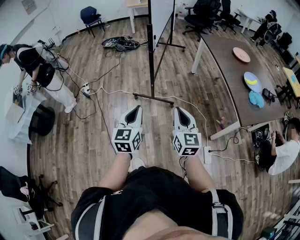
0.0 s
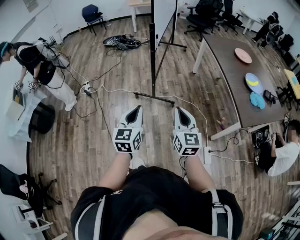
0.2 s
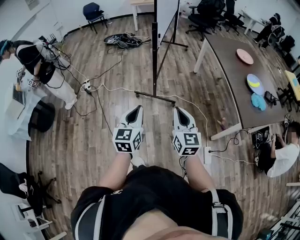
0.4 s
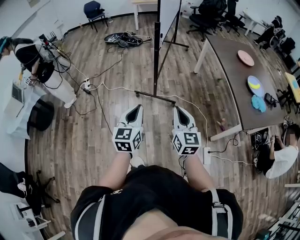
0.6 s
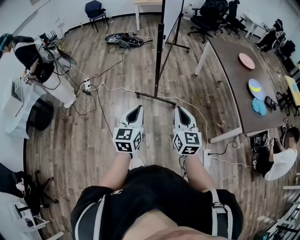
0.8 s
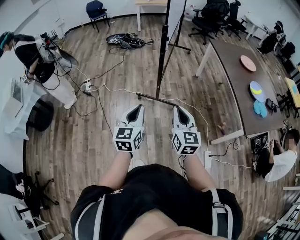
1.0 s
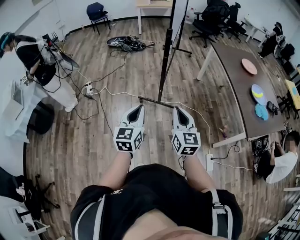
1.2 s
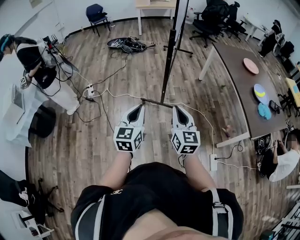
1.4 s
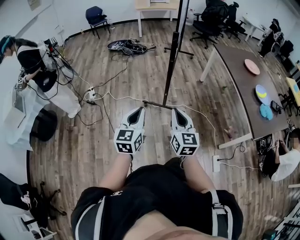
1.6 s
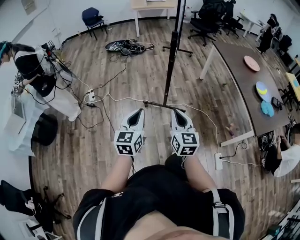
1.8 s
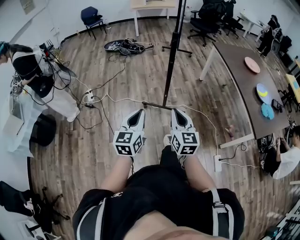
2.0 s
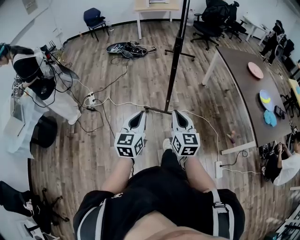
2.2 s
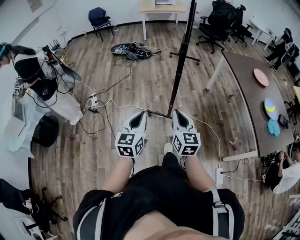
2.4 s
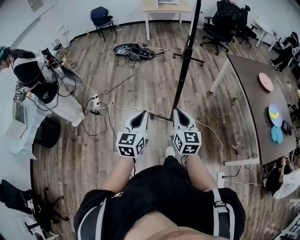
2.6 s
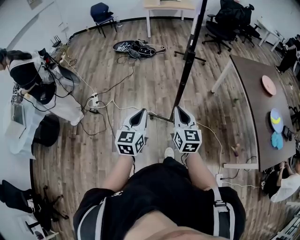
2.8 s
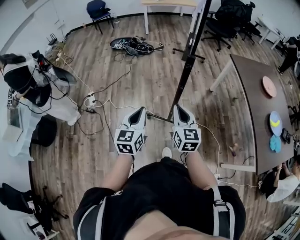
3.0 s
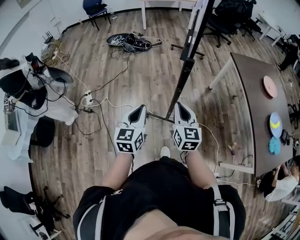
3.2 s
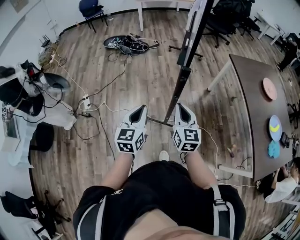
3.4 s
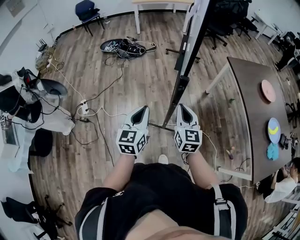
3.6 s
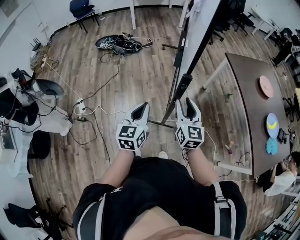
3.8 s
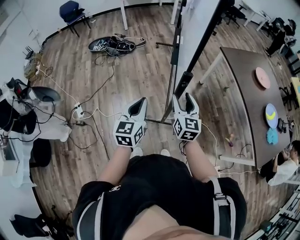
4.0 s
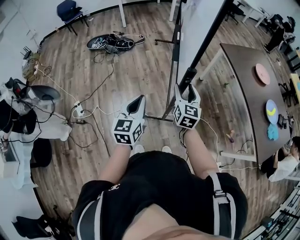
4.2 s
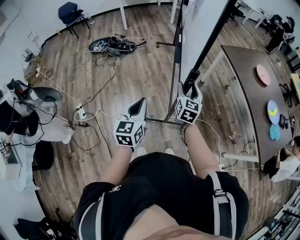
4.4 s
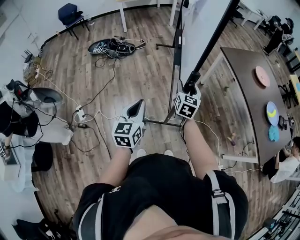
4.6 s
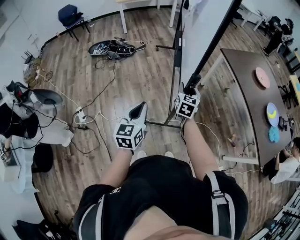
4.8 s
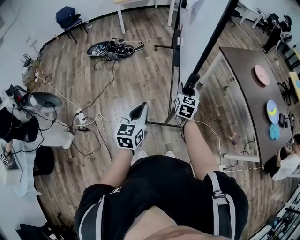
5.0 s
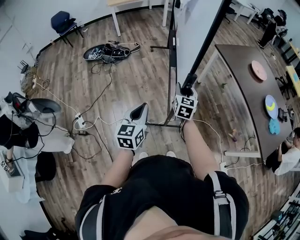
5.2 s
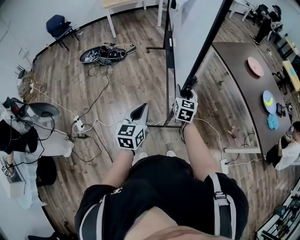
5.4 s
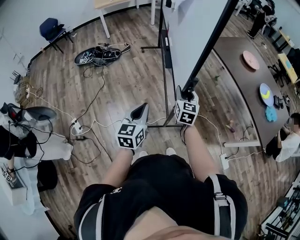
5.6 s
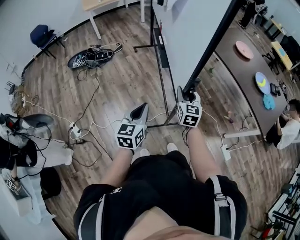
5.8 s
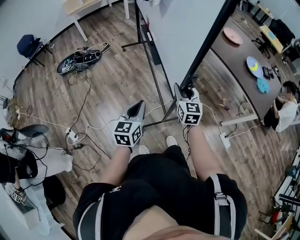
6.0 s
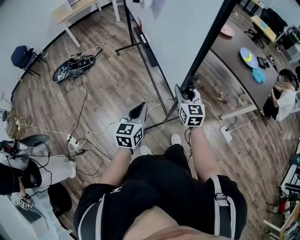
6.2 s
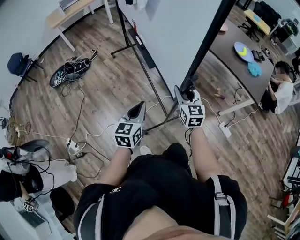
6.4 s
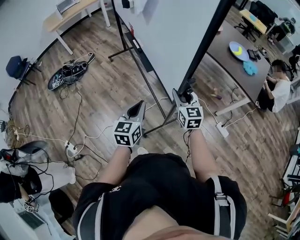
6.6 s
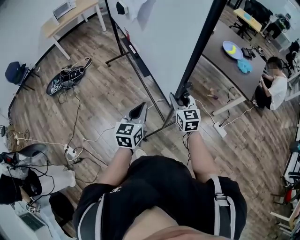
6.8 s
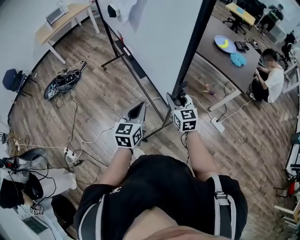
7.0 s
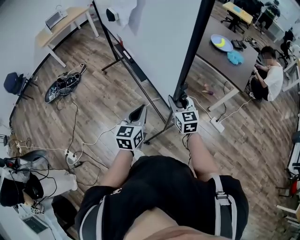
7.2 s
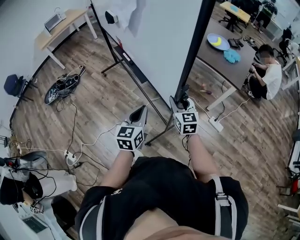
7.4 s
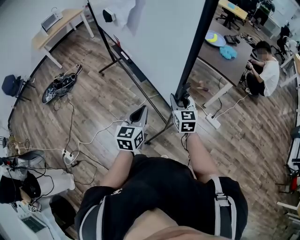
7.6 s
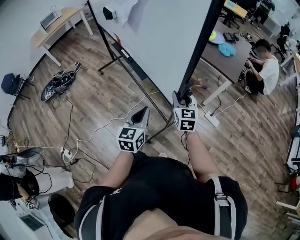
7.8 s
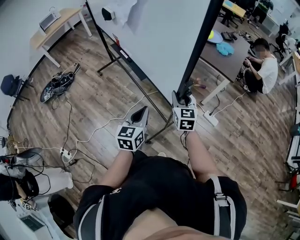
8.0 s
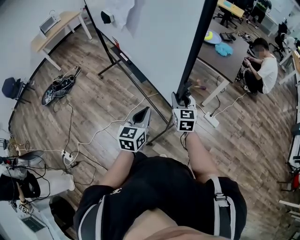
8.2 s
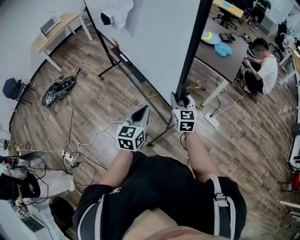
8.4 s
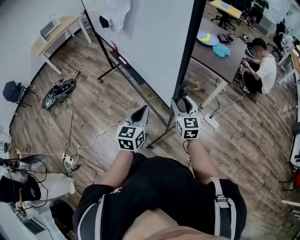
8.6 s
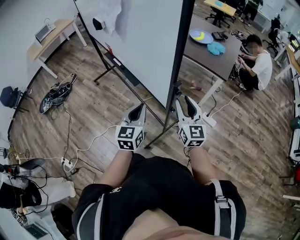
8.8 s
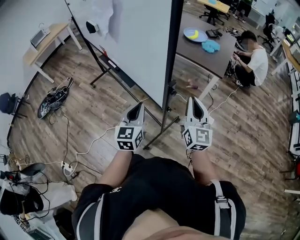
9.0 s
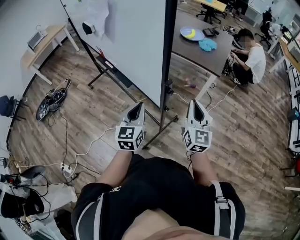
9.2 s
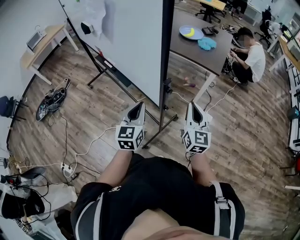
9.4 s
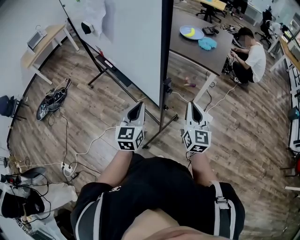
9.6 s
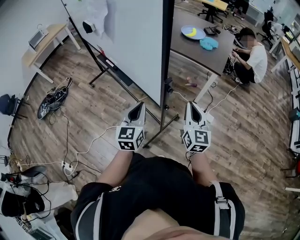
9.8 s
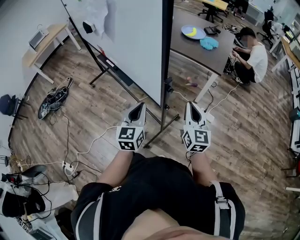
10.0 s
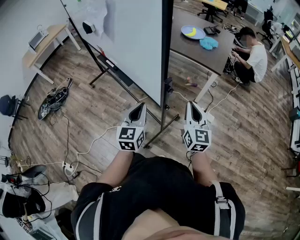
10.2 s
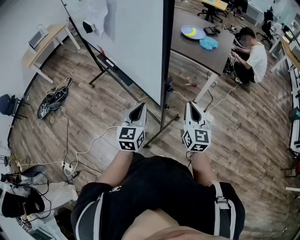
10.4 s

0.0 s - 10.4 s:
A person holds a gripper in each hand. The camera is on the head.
0.0 s - 1.4 s: Both grippers move to the left and forward, some 15 cm.
1.4 s - 3.0 s: The two grippers go some 30 cm forward.
3.0 s - 4.4 s: The two grippers go approximately 20 cm forward. The right gripper rotates about 30 degrees, and opens its fingers.
4.4 s - 6.0 s: The right gripper is displaced to the right and backward by approximately 10 cm. Meanwhile the left gripper heads to the right, covering roughly 5 cm, and changes its angle by roughly 20 degrees.
6.0 s - 7.4 s: The left gripper moves to the right, about 25 cm. The right gripper heads to the right and backward, covering some 25 cm.
7.4 s - 9.0 s: The right gripper goes approximately 20 cm to the right, upward and backward, rotates roughly 30 degrees, and closes its fingers. The left gripper heads to the right, covering approximately 10 cm.
9.0 s - 10.4 s: The grippers make only small movements.

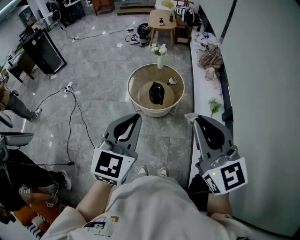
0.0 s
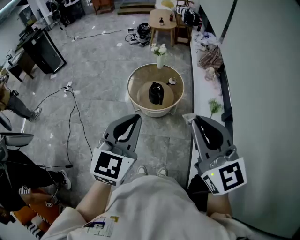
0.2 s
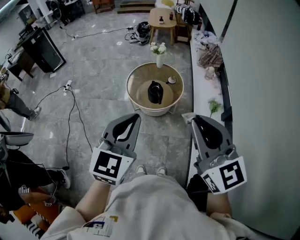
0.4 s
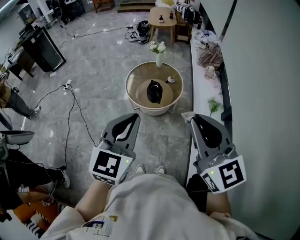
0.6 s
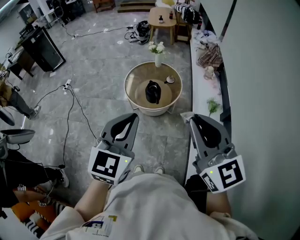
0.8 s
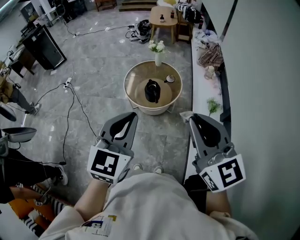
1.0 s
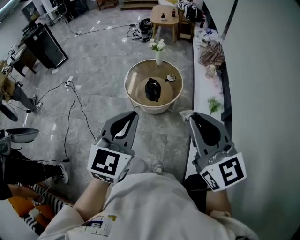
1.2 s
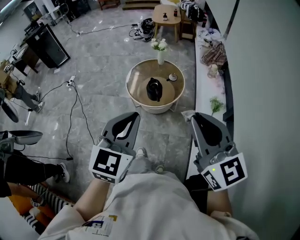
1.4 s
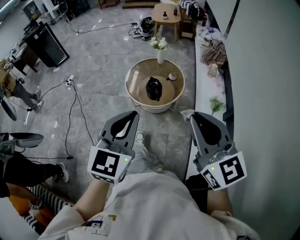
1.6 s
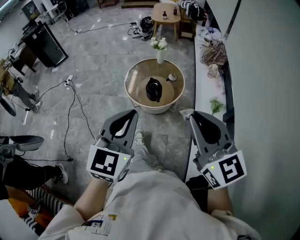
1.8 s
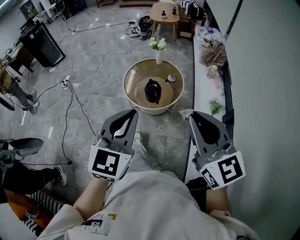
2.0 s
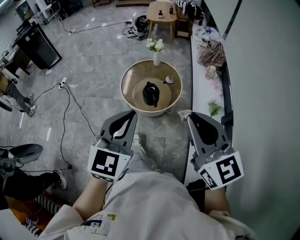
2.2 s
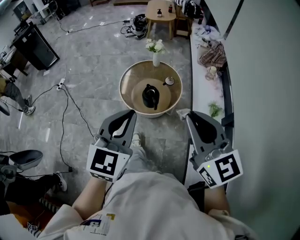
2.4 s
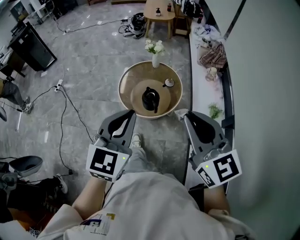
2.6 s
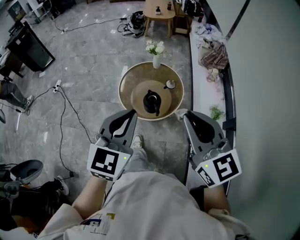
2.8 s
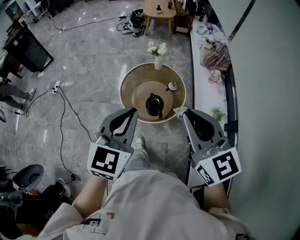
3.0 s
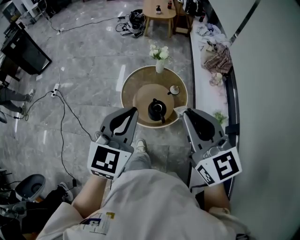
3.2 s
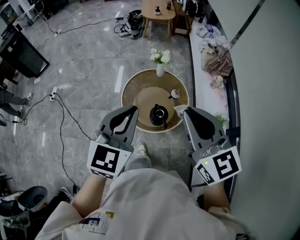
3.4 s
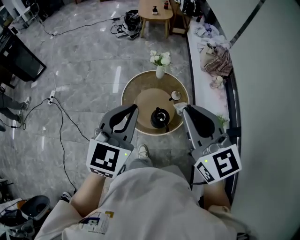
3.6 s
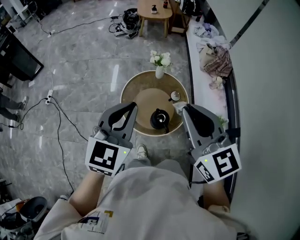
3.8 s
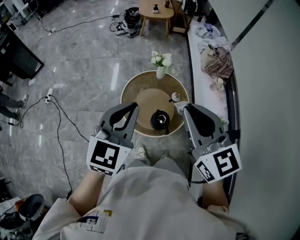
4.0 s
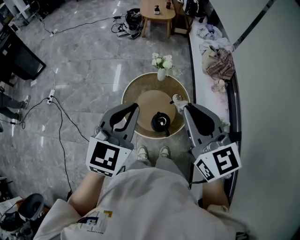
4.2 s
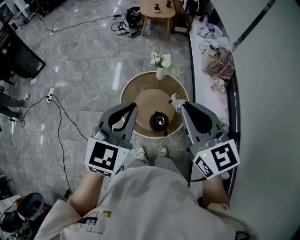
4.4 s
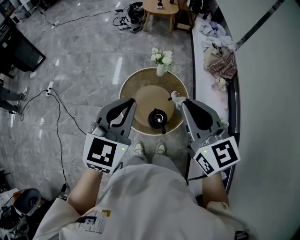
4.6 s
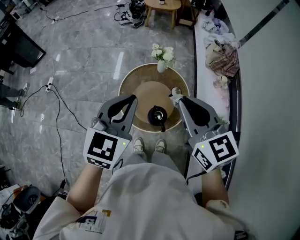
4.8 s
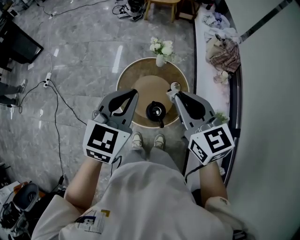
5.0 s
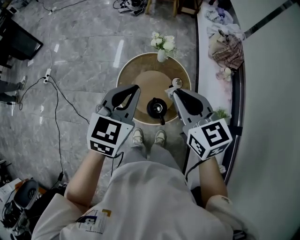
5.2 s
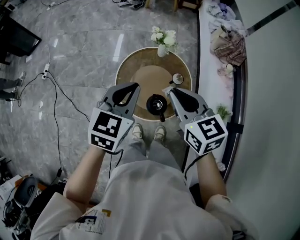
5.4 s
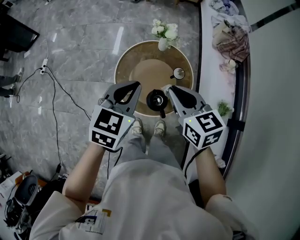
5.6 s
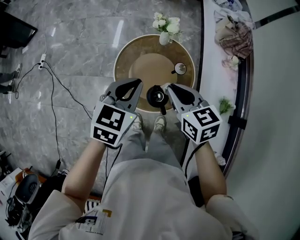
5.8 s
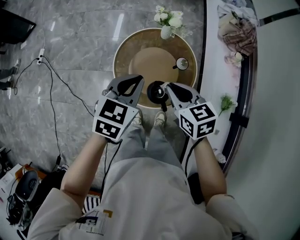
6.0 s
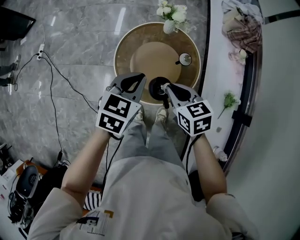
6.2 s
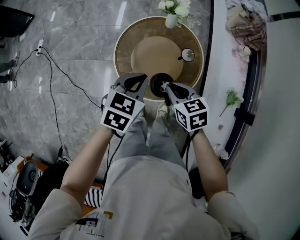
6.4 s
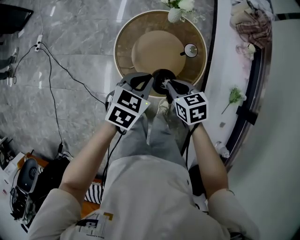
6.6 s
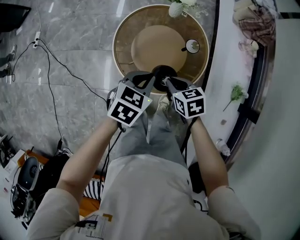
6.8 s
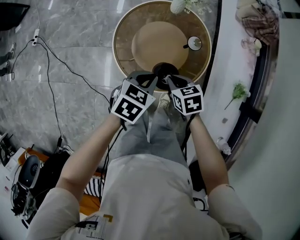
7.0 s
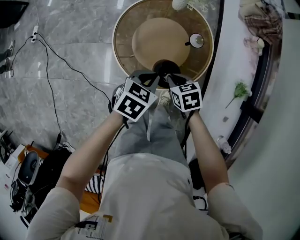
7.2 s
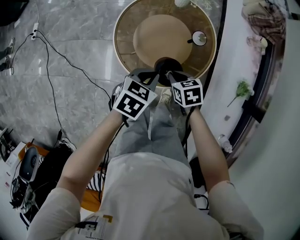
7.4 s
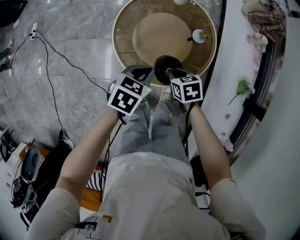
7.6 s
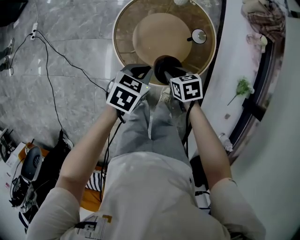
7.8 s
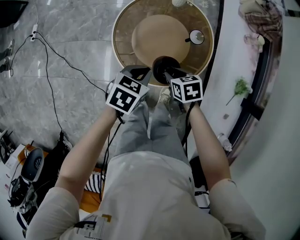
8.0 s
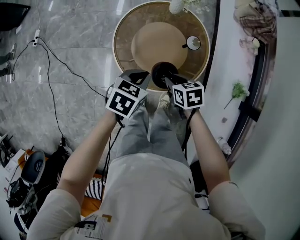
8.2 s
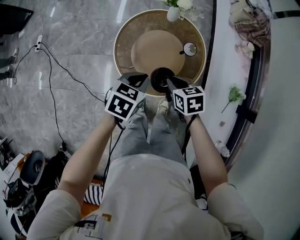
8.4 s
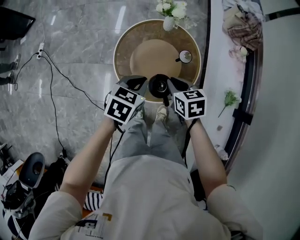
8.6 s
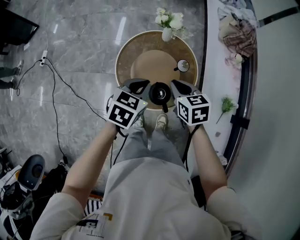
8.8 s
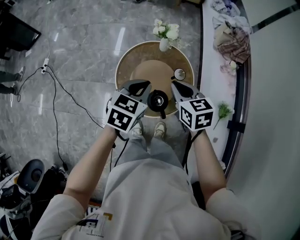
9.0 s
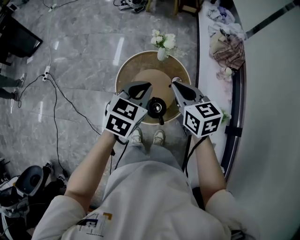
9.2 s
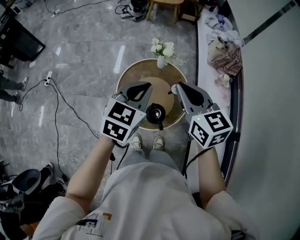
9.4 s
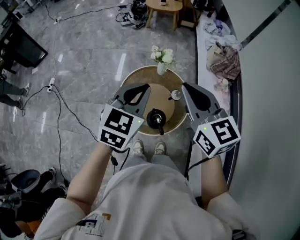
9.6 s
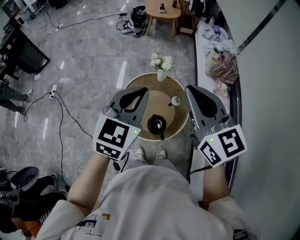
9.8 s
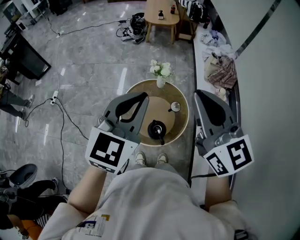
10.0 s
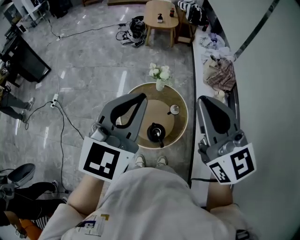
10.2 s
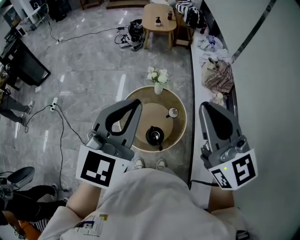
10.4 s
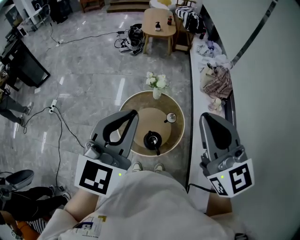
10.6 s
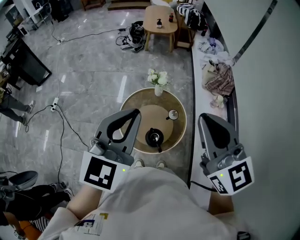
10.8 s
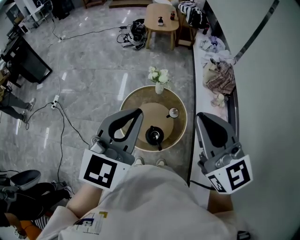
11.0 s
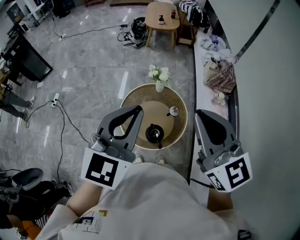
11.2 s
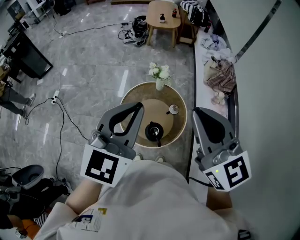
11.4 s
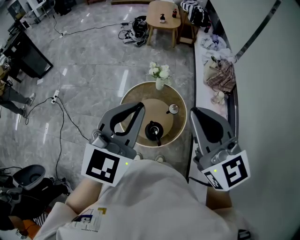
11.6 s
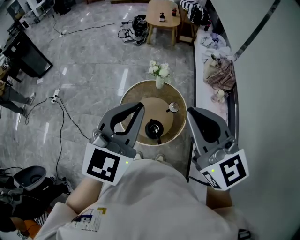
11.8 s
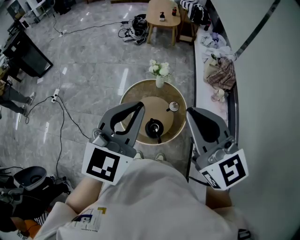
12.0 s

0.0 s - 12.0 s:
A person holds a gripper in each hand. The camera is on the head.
0.0 s - 1.6 s: The two grippers go roughly 5 cm to the right.
1.6 s - 3.0 s: Both grippers travel together forward, about 25 cm.
3.0 s - 4.4 s: The two grippers go about 20 cm forward.
4.4 s - 6.0 s: Both grippers move downward, roughly 25 cm. The right gripper changes its angle by roughly 30 degrees. The left gripper swivels some 20 degrees.
6.0 s - 7.6 s: Both grippers move downward, some 25 cm. The right gripper changes its angle by roughly 30 degrees; the left gripper turns by roughly 30 degrees.
7.6 s - 9.0 s: Both grippers move upward, approximately 25 cm. The left gripper changes its angle by about 20 degrees. Meanwhile the right gripper changes its angle by roughly 30 degrees, and opens, then closes again.
9.0 s - 10.4 s: The grippers both shift upward by roughly 35 cm. The right gripper points its fingers approximately 40 degrees further upward. The left gripper angles its fingers upward, by about 30 degrees.
10.4 s - 12.0 s: The right gripper shifts by about 5 cm.

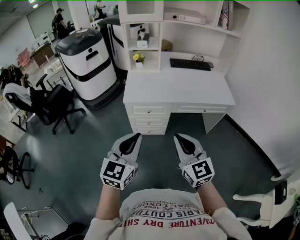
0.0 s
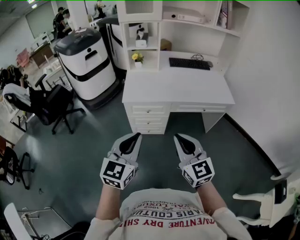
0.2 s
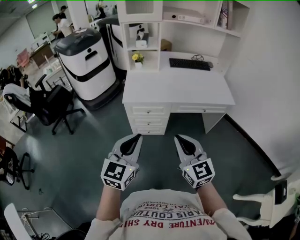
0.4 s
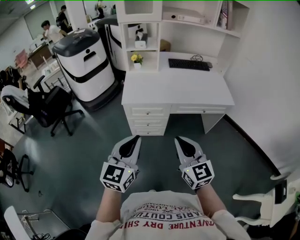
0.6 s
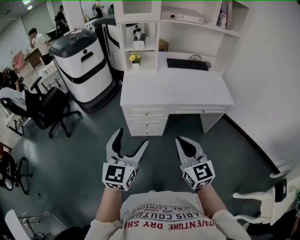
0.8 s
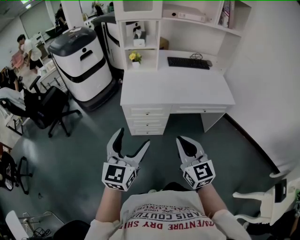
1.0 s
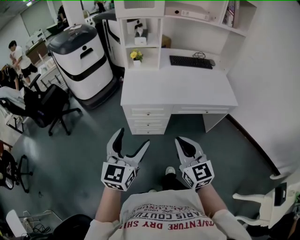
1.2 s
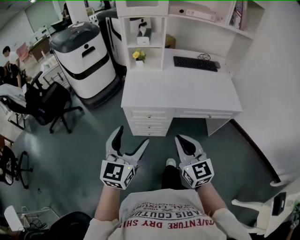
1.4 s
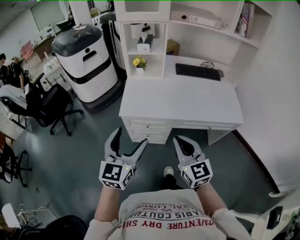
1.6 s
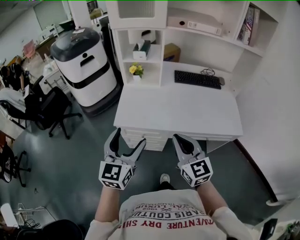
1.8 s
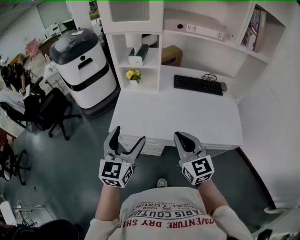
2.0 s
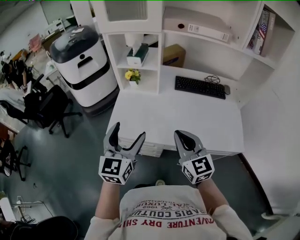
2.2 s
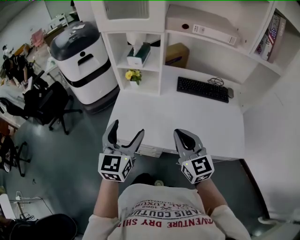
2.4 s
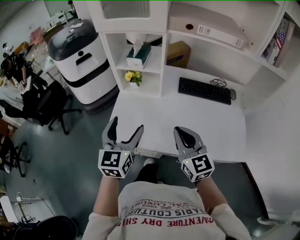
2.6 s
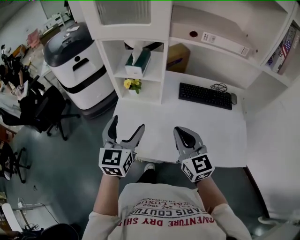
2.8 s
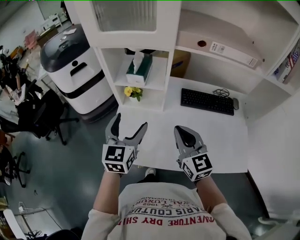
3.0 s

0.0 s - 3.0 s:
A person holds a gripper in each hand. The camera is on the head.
0.0 s - 1.6 s: Both grippers move forward, roughly 15 cm. The left gripper opens up.
1.6 s - 3.0 s: The grippers both shift forward by roughly 35 cm.
